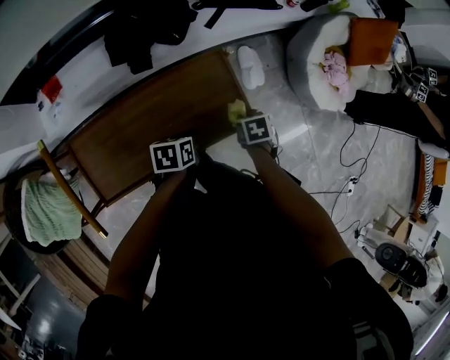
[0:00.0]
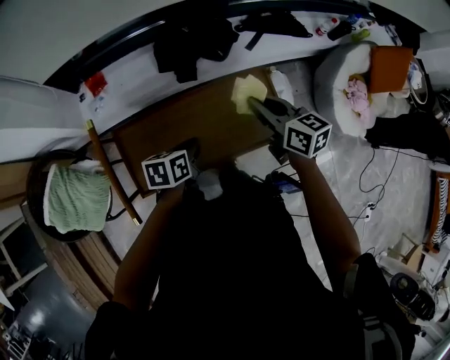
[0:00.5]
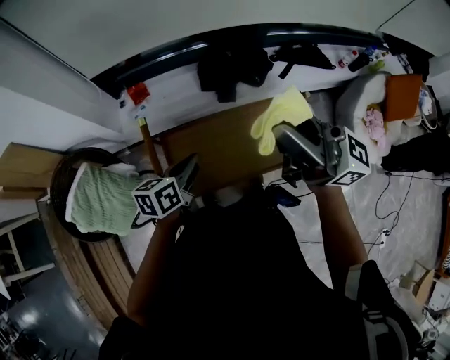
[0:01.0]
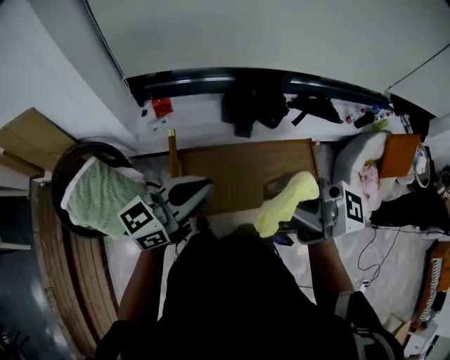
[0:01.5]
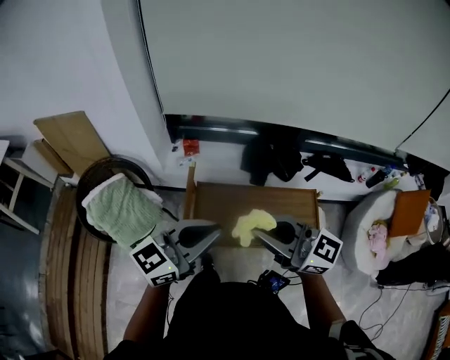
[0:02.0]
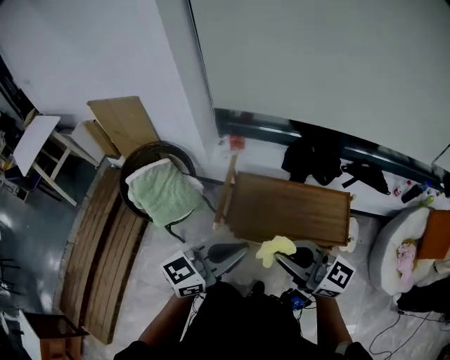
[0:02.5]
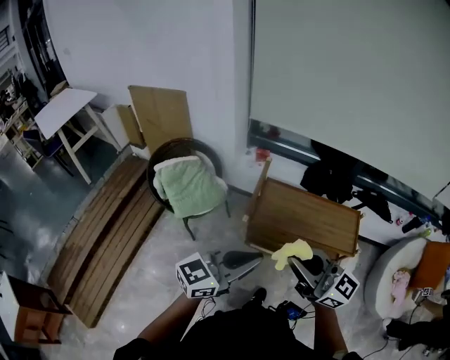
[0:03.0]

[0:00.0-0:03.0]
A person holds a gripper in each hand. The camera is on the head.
0:00.0 to 0:01.5: The left gripper heads upward, covering approximately 35 cm, and tips its fingers upward by approximately 60 degrees. Meanwhile the right gripper moves upward, some 60 cm, and tips its fingers upward by approximately 100 degrees.
0:01.5 to 0:03.0: The right gripper ends up about 25 cm from where it was, while the left gripper changes place by approximately 30 cm, and turns by roughly 20 degrees.

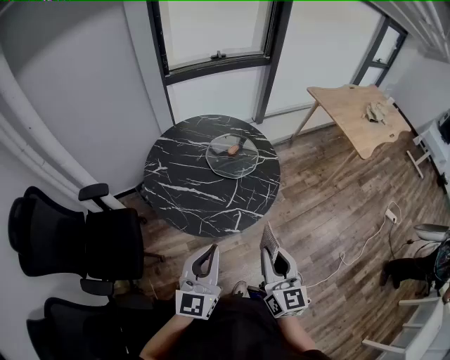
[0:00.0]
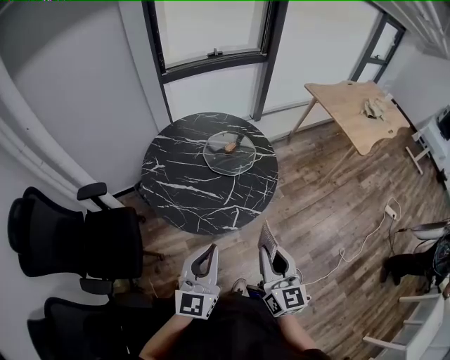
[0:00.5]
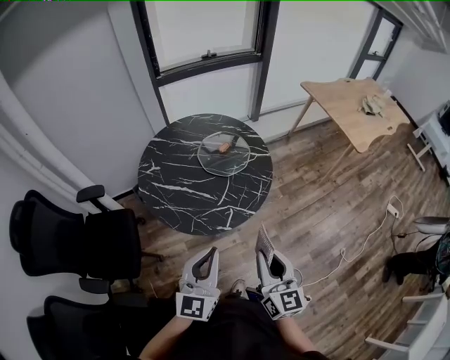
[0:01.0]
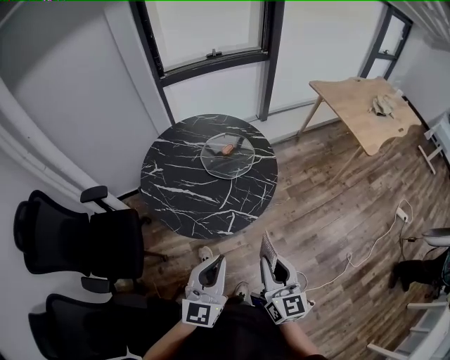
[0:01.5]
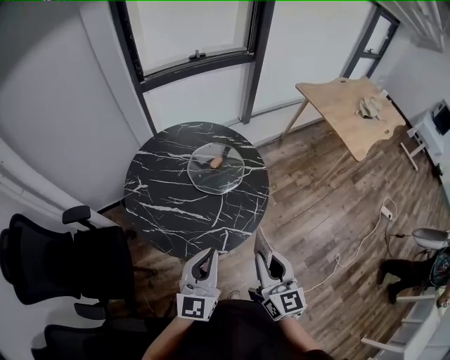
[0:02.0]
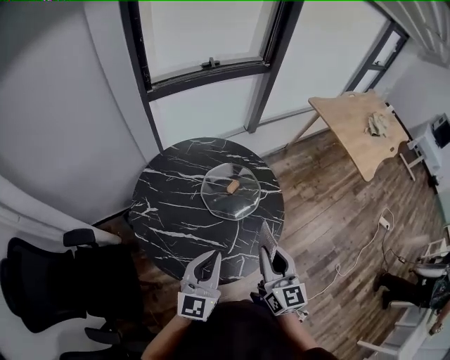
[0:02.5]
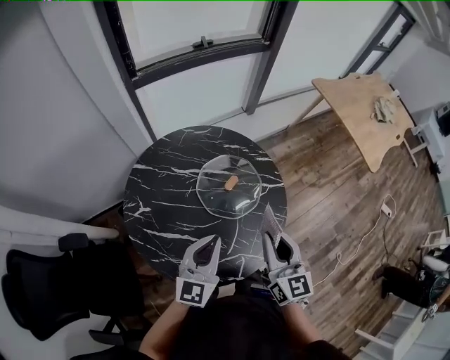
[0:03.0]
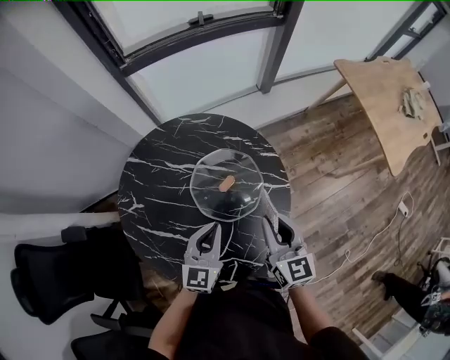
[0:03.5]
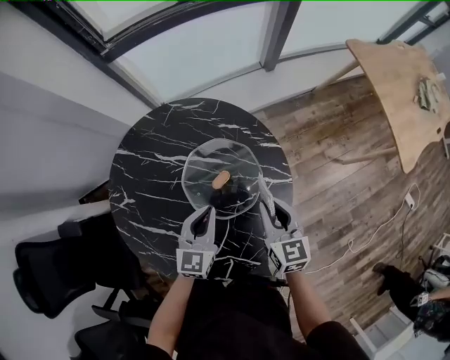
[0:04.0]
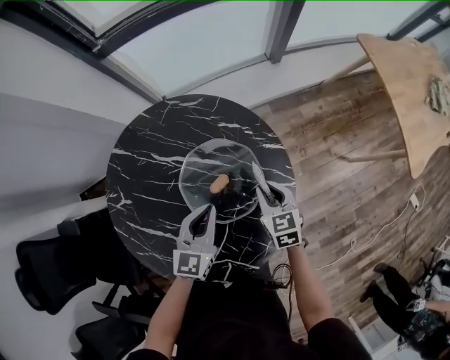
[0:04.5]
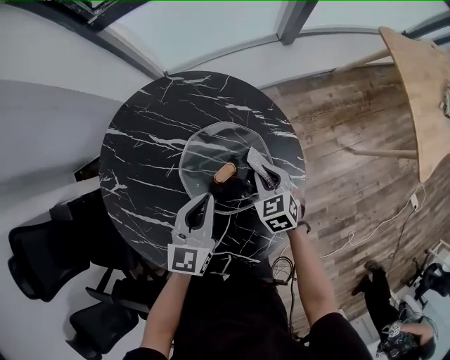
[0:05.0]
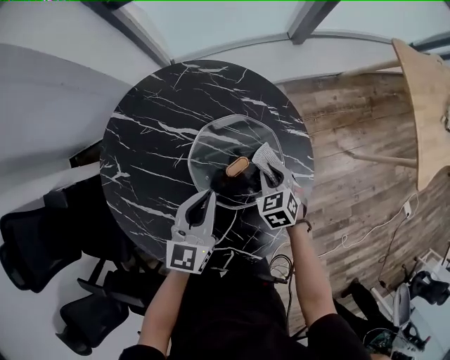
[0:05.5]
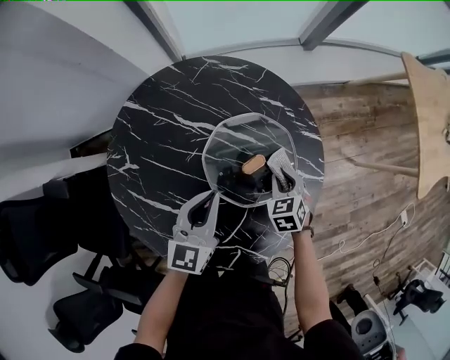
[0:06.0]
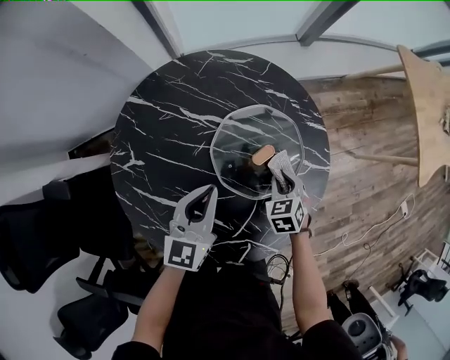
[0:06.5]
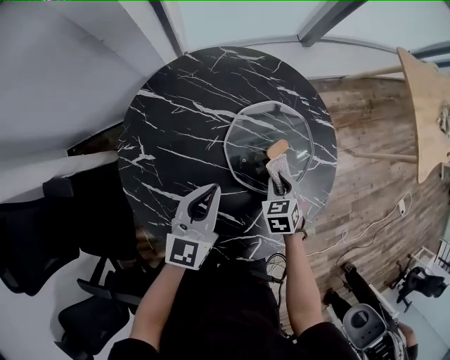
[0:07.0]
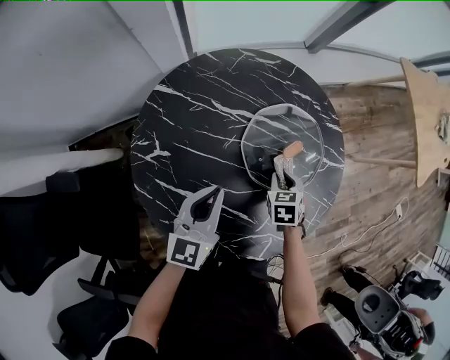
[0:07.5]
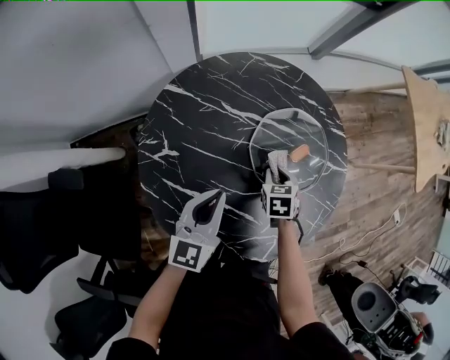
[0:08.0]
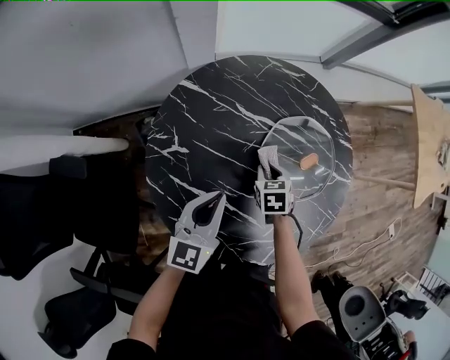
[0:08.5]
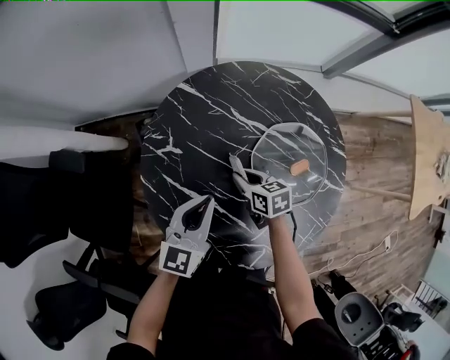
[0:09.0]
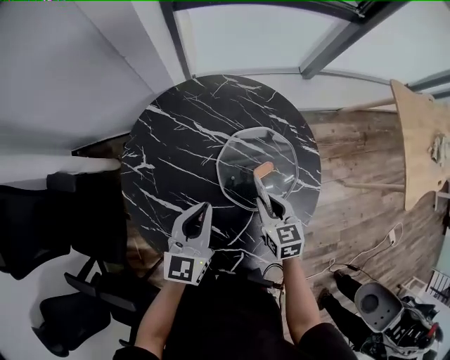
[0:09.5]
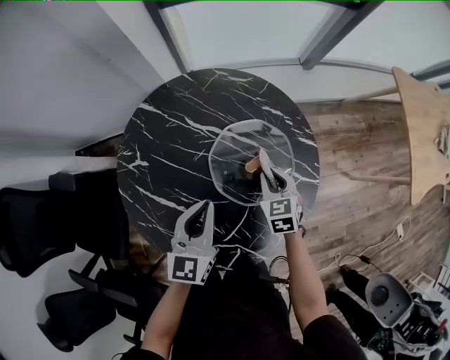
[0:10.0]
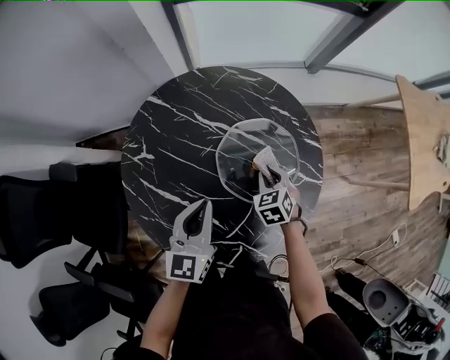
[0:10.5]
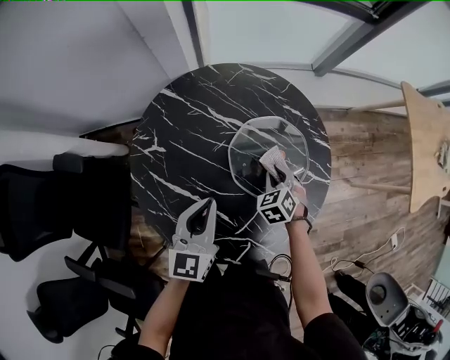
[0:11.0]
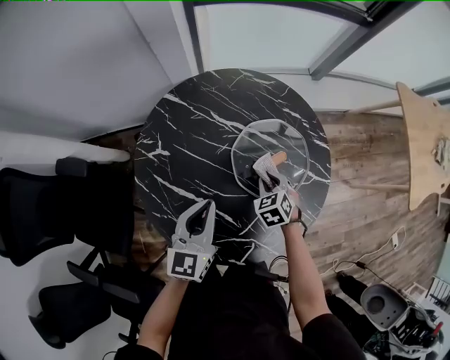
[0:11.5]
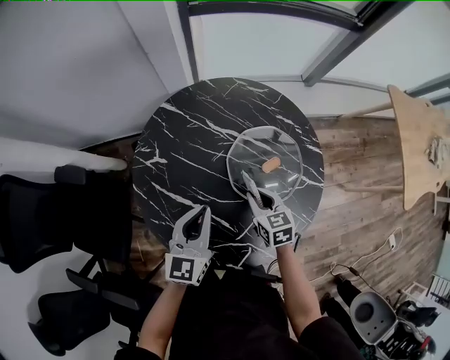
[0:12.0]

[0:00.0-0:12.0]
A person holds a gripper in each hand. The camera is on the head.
0:00.0 to 0:02.0: The grippers both shift forward by about 10 cm.
0:02.0 to 0:04.0: The two grippers go approximately 40 cm forward and downward. The right gripper rotates about 20 degrees.
0:04.0 to 0:06.0: The left gripper moves to the left, some 5 cm. Meanwhile the right gripper is displaced downward by some 20 cm, and tilts its fingers roughly 30 degrees downward.
0:06.0 to 0:08.0: Both grippers travel together to the left and backward, approximately 15 cm. The right gripper changes its angle by approximately 20 degrees.
0:08.0 to 0:10.0: The left gripper ends up some 15 cm from where it was. Meanwhile the right gripper changes place by approximately 15 cm, and turns by about 30 degrees.
0:10.0 to 0:12.0: The left gripper is displaced to the left by some 10 cm; the right gripper shifts about 10 cm to the left and backward.

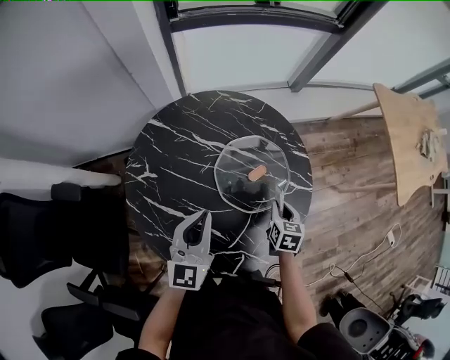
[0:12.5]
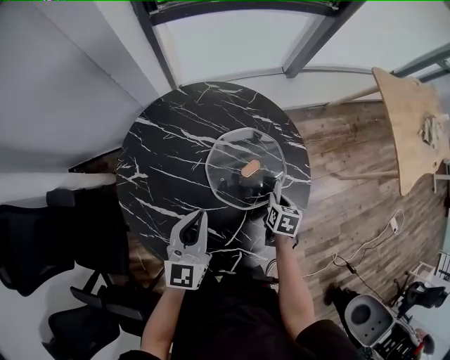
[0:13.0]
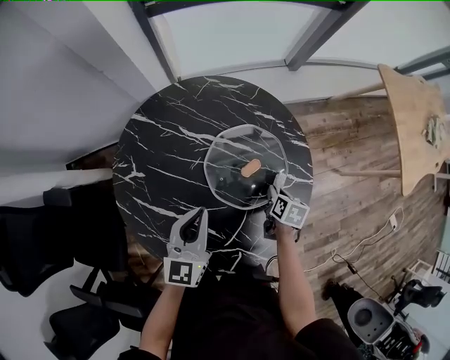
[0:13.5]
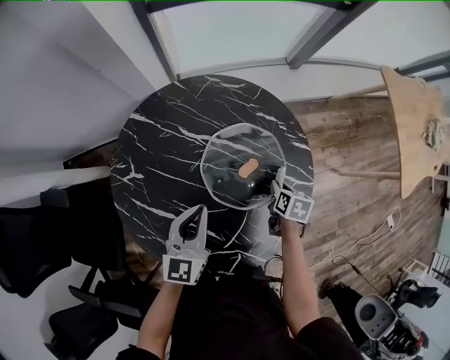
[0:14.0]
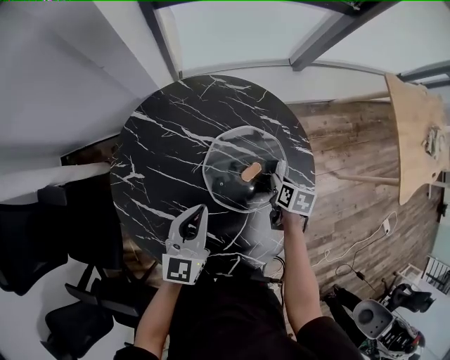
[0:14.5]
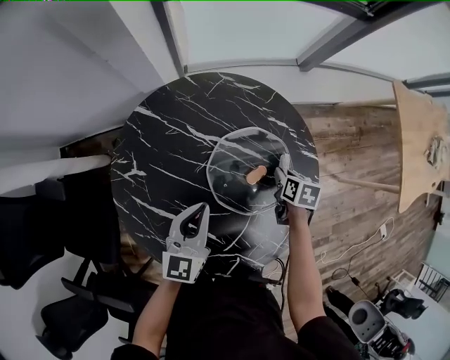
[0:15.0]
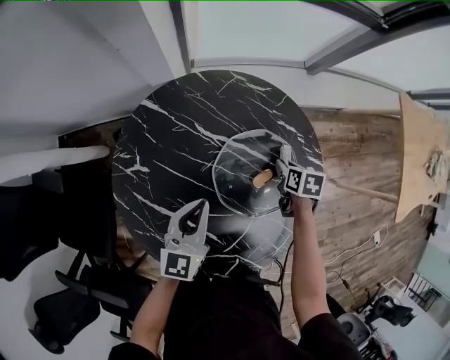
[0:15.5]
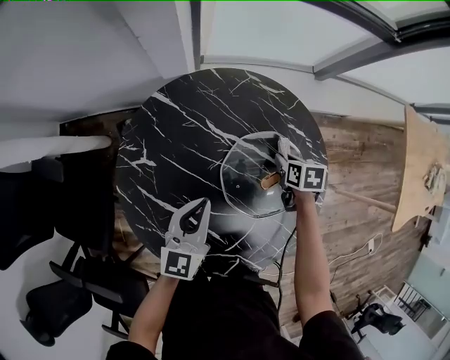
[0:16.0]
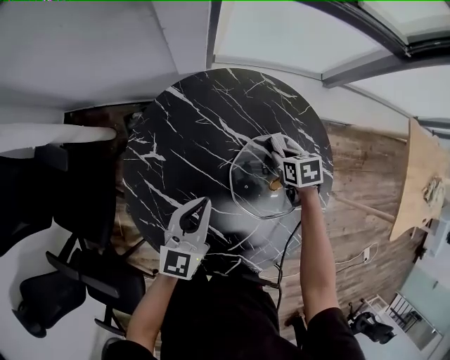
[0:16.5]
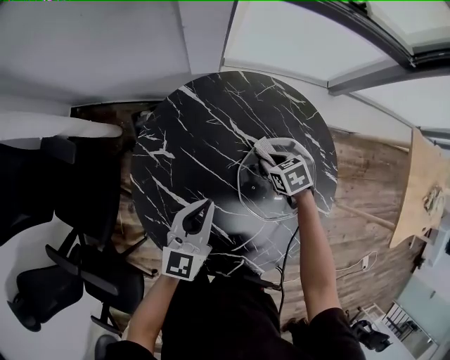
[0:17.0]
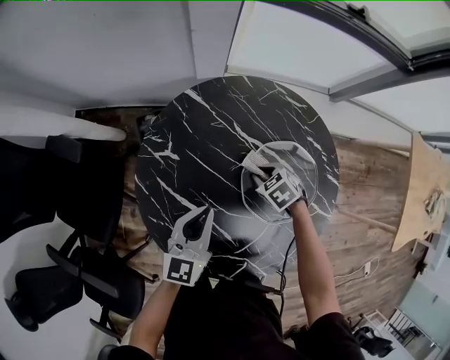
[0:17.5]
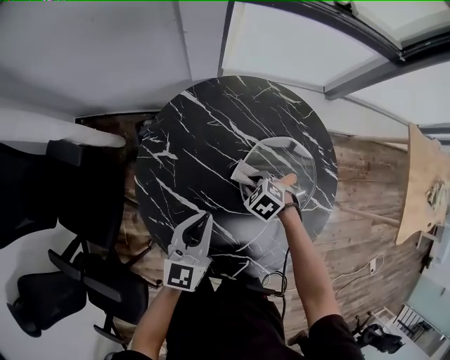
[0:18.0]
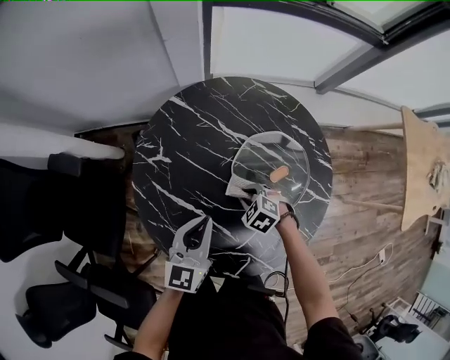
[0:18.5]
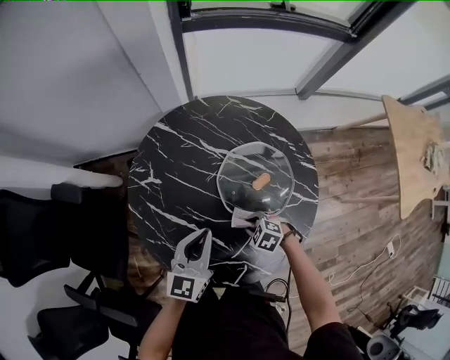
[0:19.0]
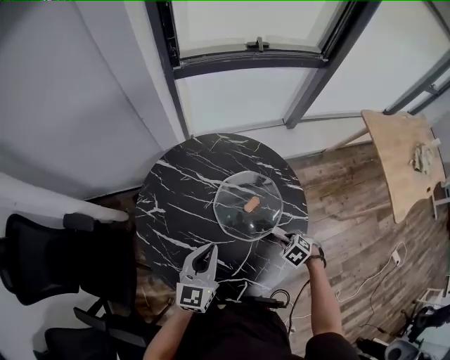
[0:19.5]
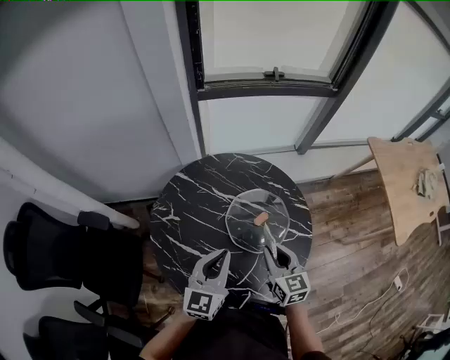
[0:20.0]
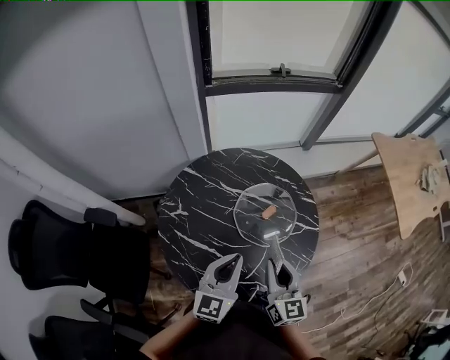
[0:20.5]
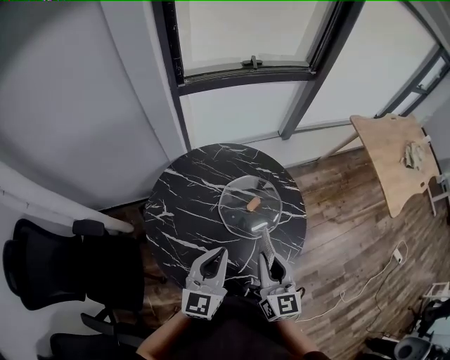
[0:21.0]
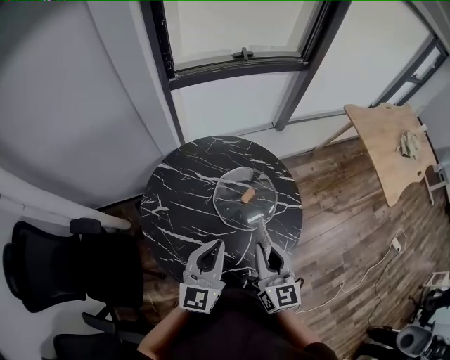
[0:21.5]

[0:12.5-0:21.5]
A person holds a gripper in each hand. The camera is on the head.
0:12.5 to 0:14.5: The right gripper moves forward and downward, approximately 10 cm, and swivels some 20 degrees. The left gripper heads downward and forward, covering roughly 10 cm.
0:14.5 to 0:17.0: The left gripper ends up roughly 10 cm from where it was; the right gripper shifts by approximately 20 cm, and twists some 50 degrees counterclockwise, seen from behind.
0:17.0 to 0:19.5: The right gripper shifts by about 30 cm. Meanwhile the left gripper ends up approximately 15 cm from where it was.
0:19.5 to 0:21.5: The left gripper moves upward, some 10 cm. Meanwhile the right gripper travels upward by some 30 cm, and points its fingers some 70 degrees further upward.

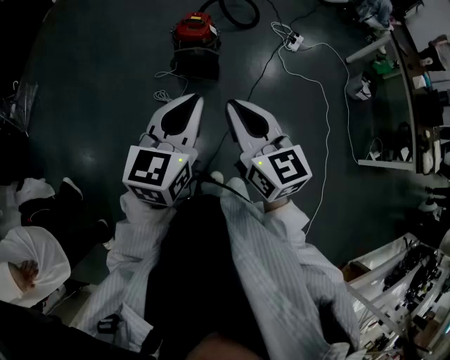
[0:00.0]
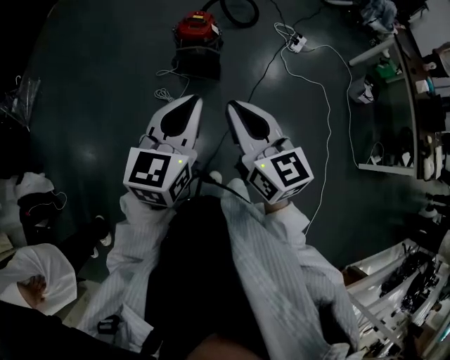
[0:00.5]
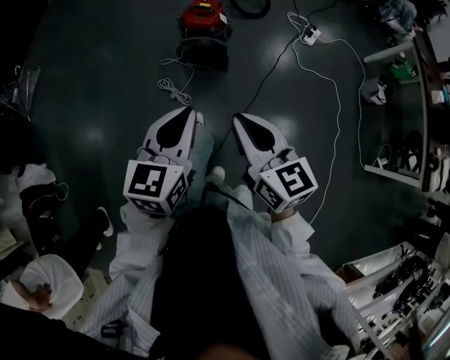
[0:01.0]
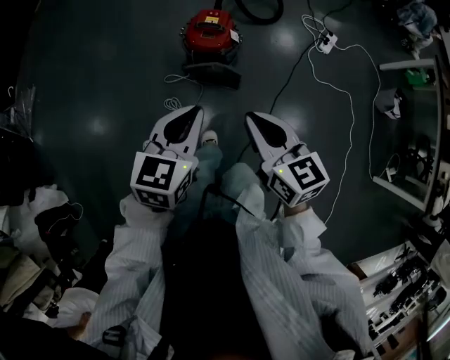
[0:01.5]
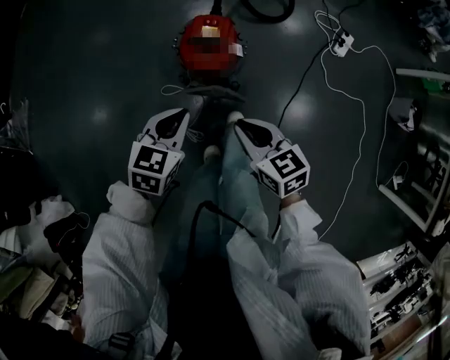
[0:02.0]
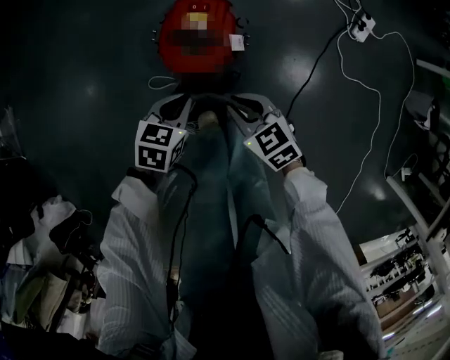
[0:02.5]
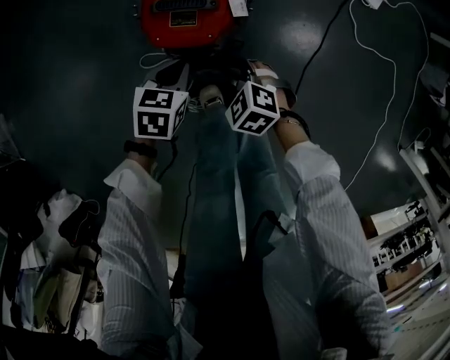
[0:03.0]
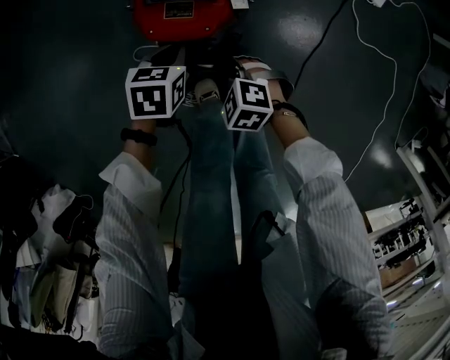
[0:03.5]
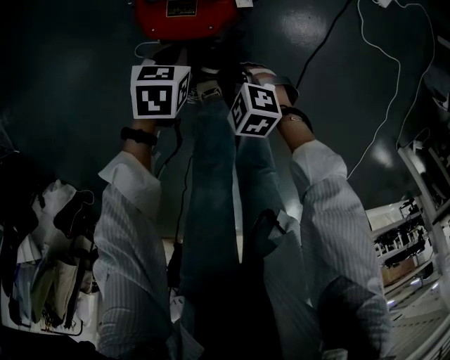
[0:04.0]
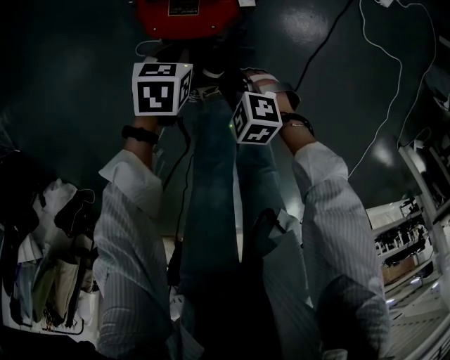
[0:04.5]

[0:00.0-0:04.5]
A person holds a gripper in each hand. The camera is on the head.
0:00.0 to 0:02.0: The two grippers travel together, forward, some 50 cm. Both grippers move downward, some 35 cm. The left gripper angles its fingers downward, by some 30 degrees; the right gripper turns by some 30 degrees.
0:02.0 to 0:04.5: Both grippers travel together downward, some 35 cm. The left gripper changes its angle by roughly 30 degrees, while the right gripper turns by some 50 degrees, and opens, then closes again.
